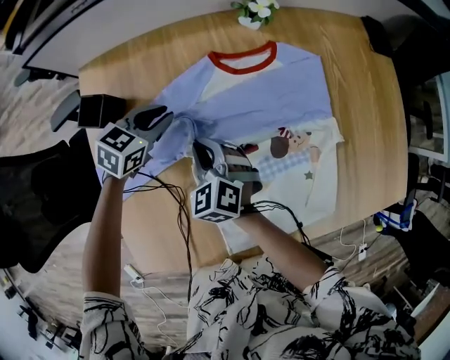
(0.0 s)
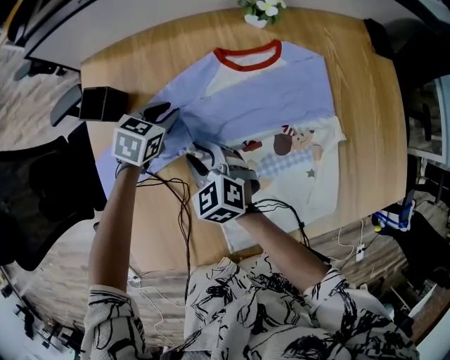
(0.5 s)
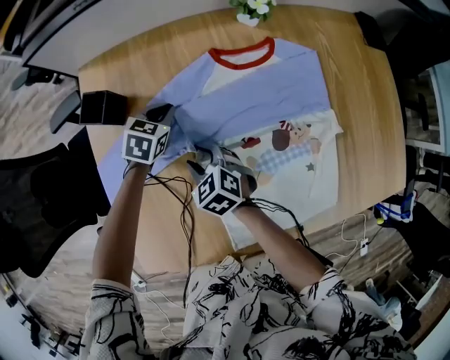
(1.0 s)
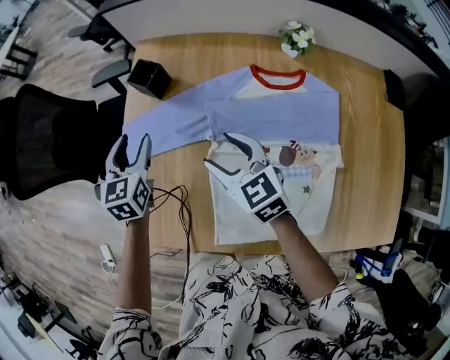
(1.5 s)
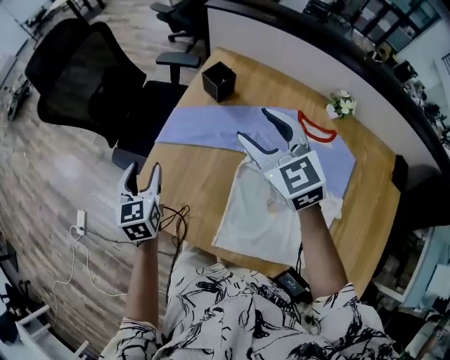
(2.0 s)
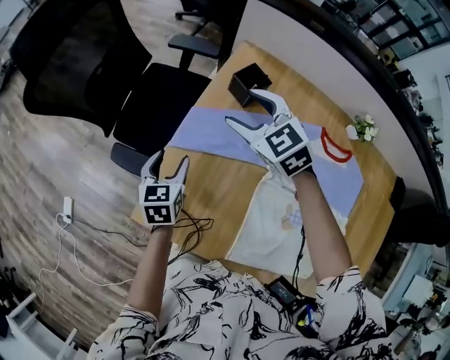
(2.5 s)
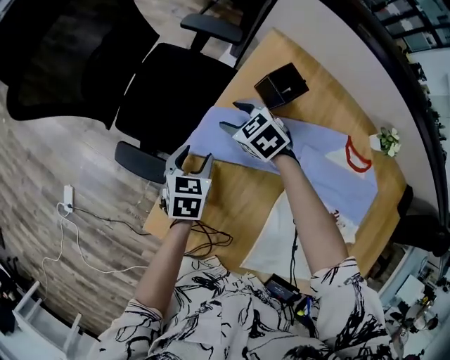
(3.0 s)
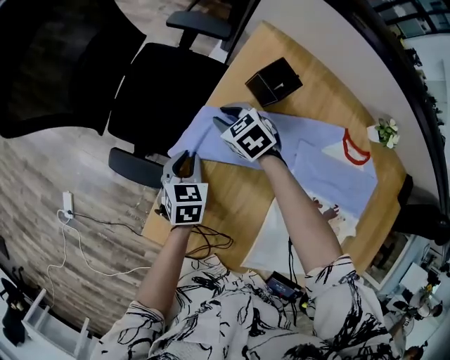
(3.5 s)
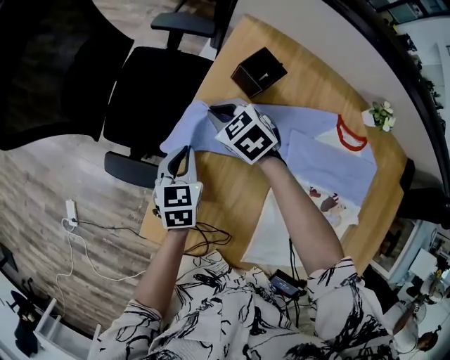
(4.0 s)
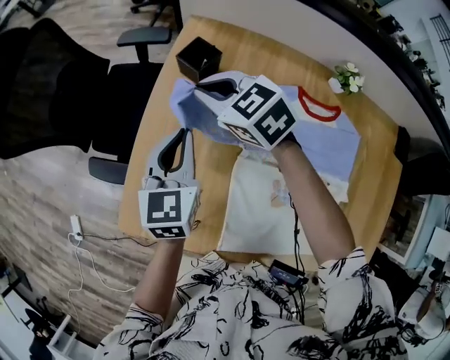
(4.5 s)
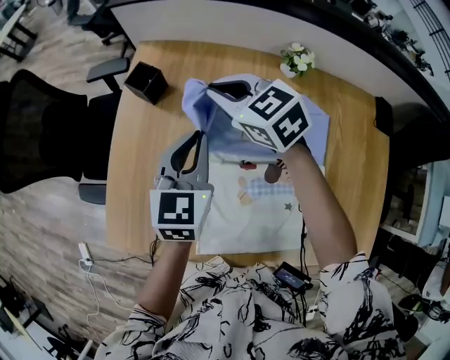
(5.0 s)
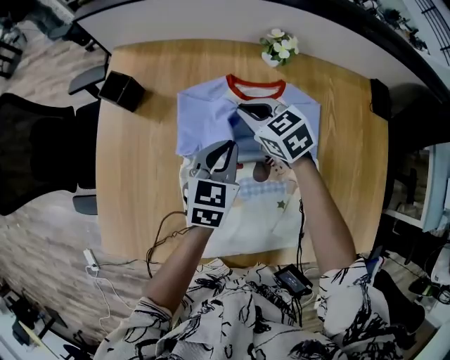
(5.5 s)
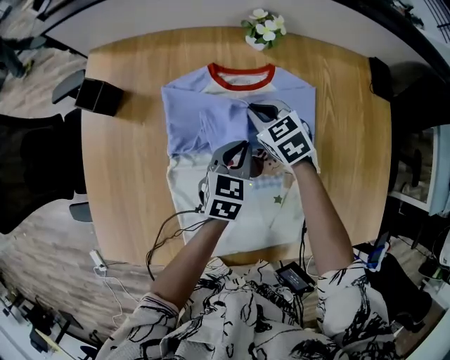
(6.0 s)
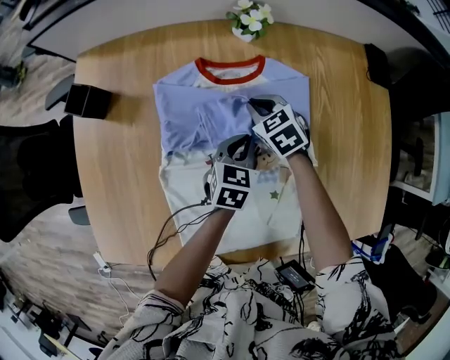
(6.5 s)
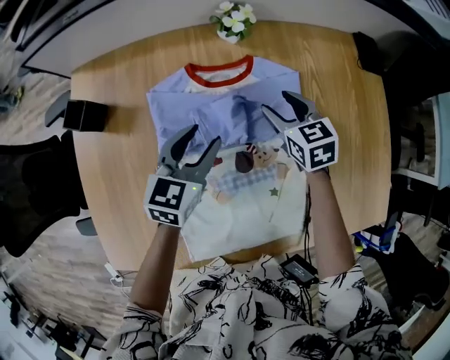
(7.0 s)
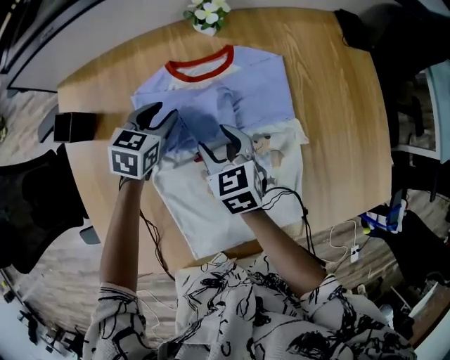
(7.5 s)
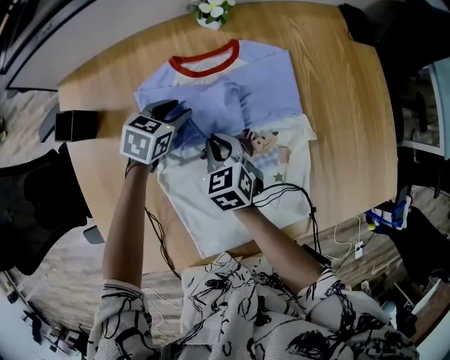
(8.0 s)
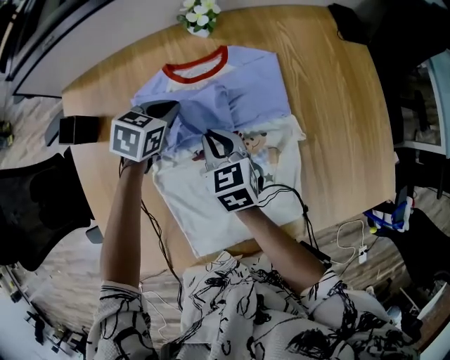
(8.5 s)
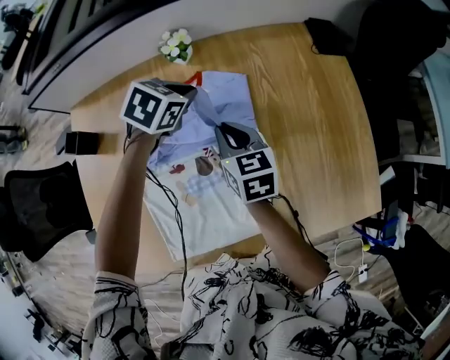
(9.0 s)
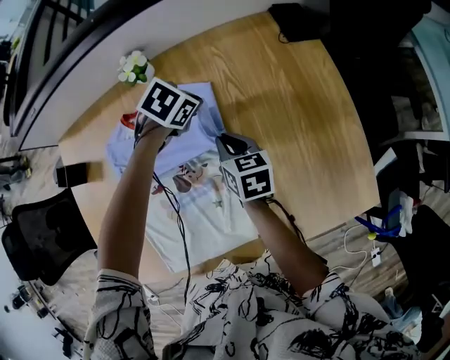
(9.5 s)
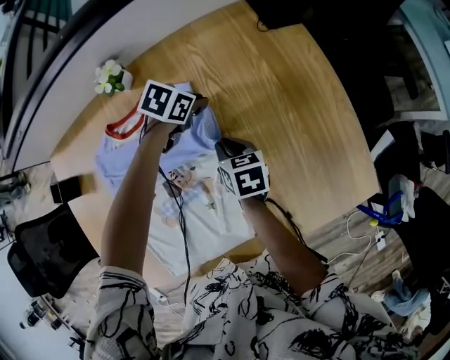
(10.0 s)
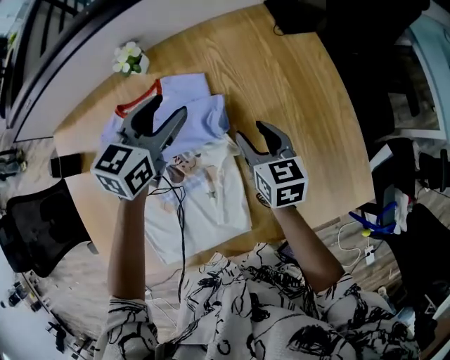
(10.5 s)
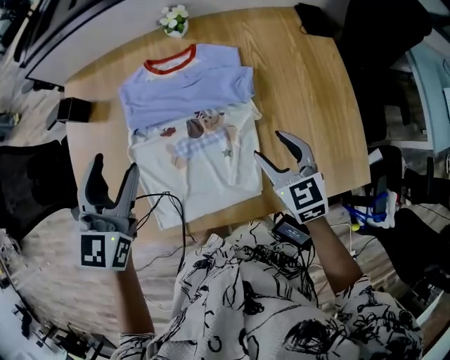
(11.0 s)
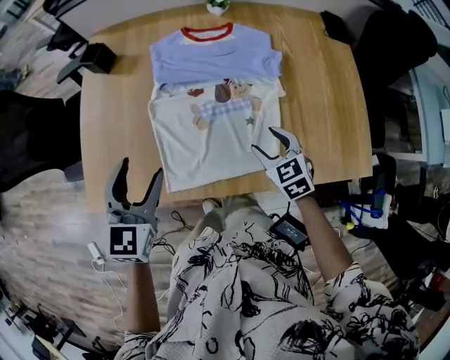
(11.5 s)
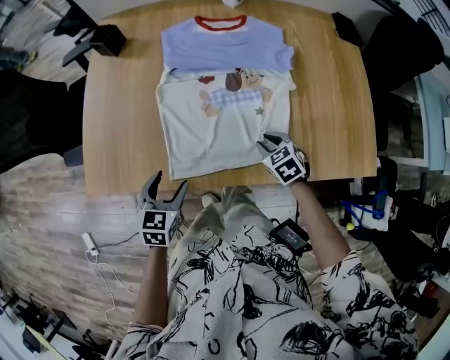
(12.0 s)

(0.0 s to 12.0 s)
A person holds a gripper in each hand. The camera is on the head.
0.0 s - 2.0 s: The right gripper travels upward by approximately 25 cm, swivels approximately 40 degrees, and opens up. Meanwhile the left gripper shifts by some 40 cm, and changes its angle by roughly 80 degrees.
2.0 s - 4.0 s: The left gripper goes roughly 20 cm downward and forward, and closes its fingers, while the right gripper heads downward, forward and to the left, covering approximately 35 cm, tips its fingers downward by about 30 degrees, and closes up.
4.0 s - 6.0 s: The two grippers travel together, about 50 cm. The left gripper rotates some 40 degrees; the right gripper turns by about 30 degrees.
6.0 s - 8.0 s: The left gripper shifts by approximately 15 cm, and swivels about 30 degrees; the right gripper shifts by some 10 cm, changes its angle by approximately 20 degrees, and opens, then closes once more.
8.0 s - 10.0 s: Both grippers move to the right and forward, about 30 cm. The right gripper changes its angle by about 40 degrees, while the left gripper turns by roughly 20 degrees.
10.0 s - 12.0 s: The right gripper goes upward and returns, about 15 cm each way, and rotates around the line of its fingers by approximately 50 degrees, counterclockwise from behind. The left gripper moves about 30 cm upward and comes back, turns by approximately 50 degrees, and opens up.

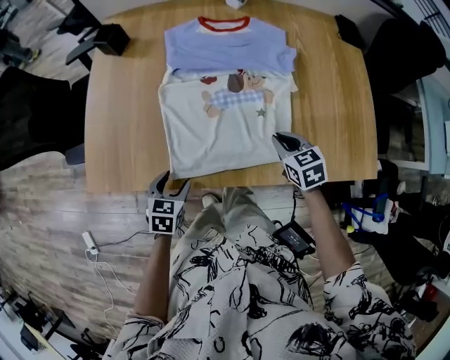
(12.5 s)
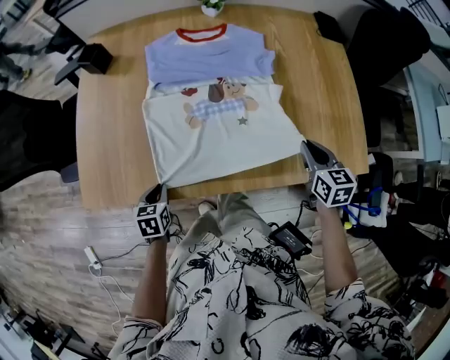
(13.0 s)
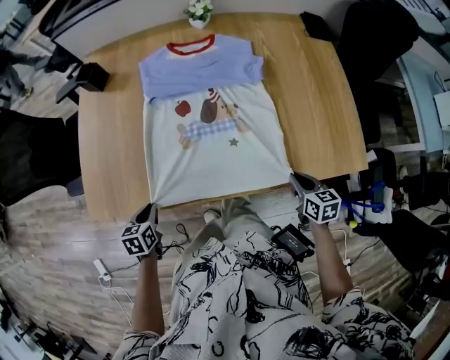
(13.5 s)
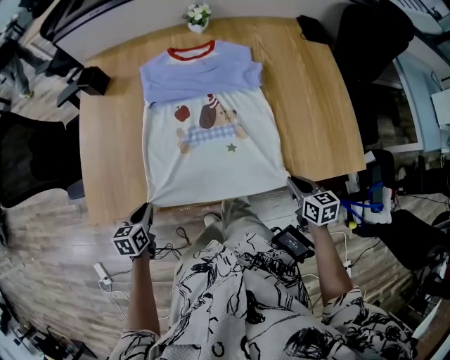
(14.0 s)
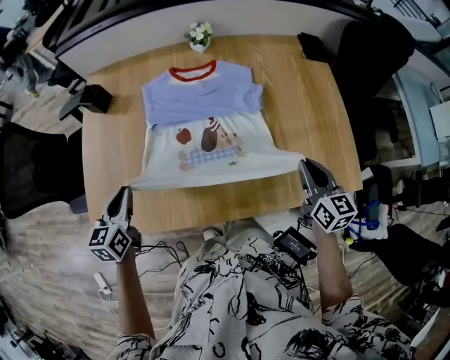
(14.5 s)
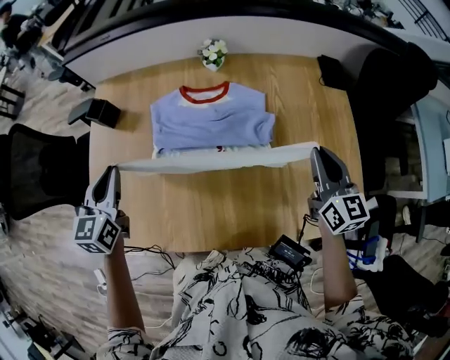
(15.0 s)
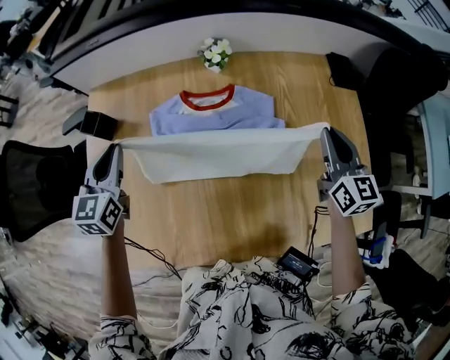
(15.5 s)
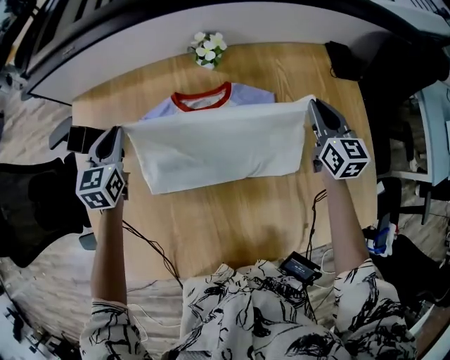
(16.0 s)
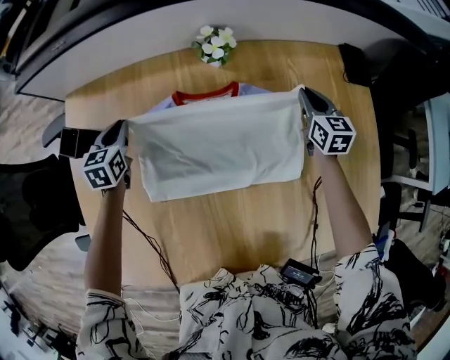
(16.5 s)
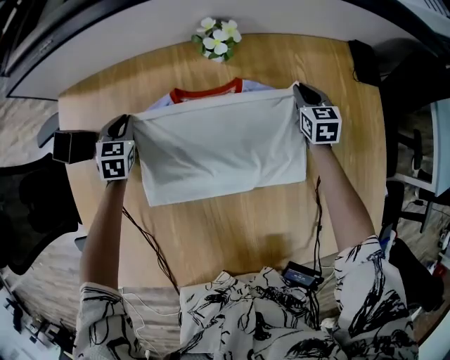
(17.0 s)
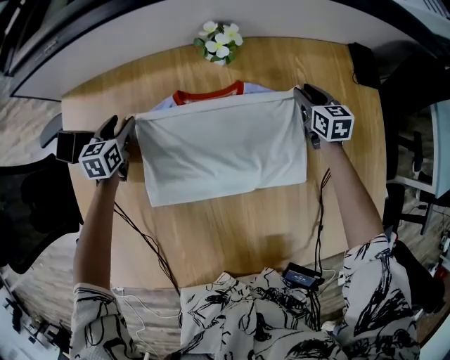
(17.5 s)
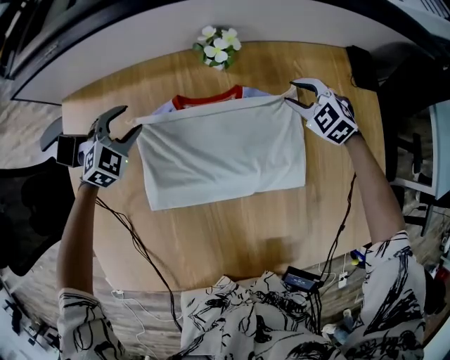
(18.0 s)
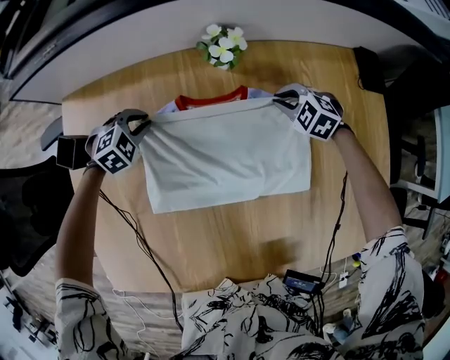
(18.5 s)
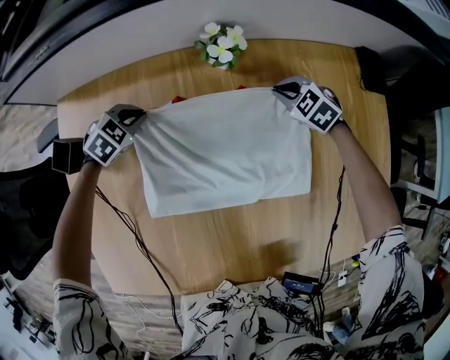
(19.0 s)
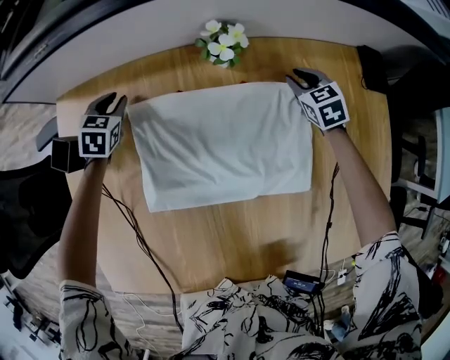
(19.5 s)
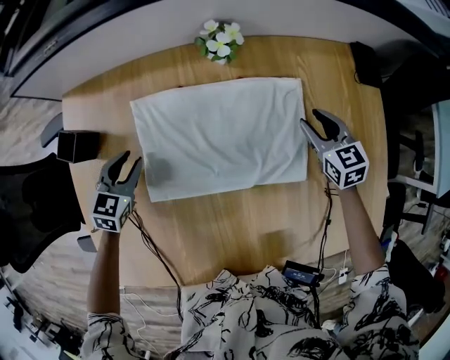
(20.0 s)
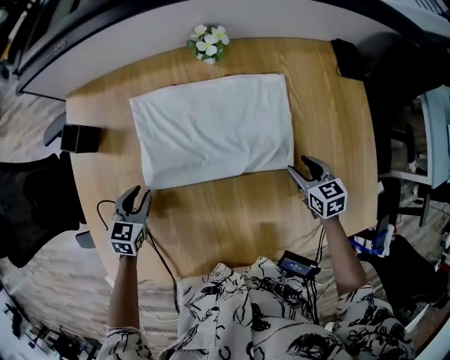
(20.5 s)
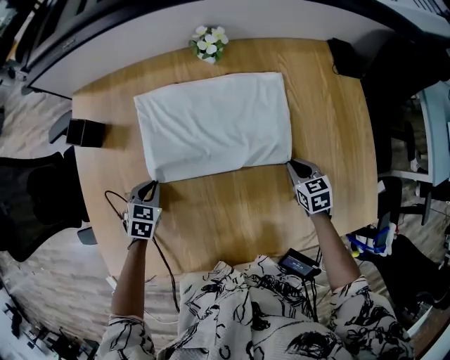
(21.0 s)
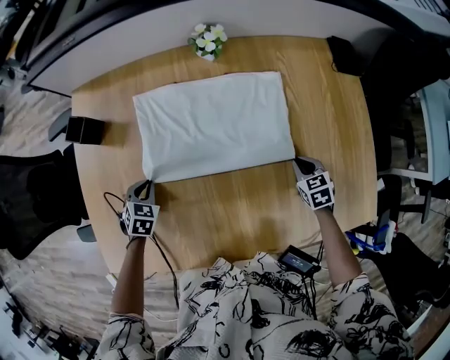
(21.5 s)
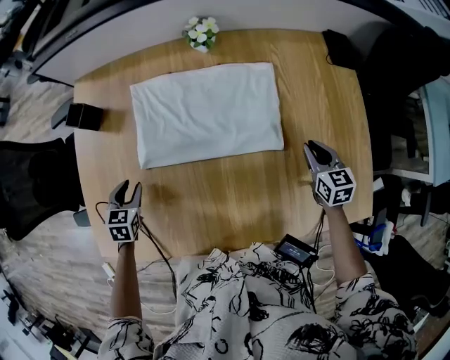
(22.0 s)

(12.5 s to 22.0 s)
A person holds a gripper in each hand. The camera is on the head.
12.5 s - 14.5 s: The left gripper goes roughly 20 cm upward and forward, rotates roughly 30 degrees, and closes up, while the right gripper moves up and down over approximately 15 cm, changing direction 2 times, and rotates some 40 degrees.
14.5 s - 16.5 s: The two grippers travel together, forward, some 40 cm.
16.5 s - 18.0 s: The right gripper shifts approximately 5 cm to the left, rolls counterclockwise, seen from behind, by approximately 50 degrees, and opens its fingers. Meanwhile the left gripper shifts by approximately 5 cm, rolls clockwise, seen from behind, by roughly 60 degrees, and opens.
18.0 s - 20.0 s: Both grippers move backward, roughly 10 cm. The left gripper turns by roughly 40 degrees; the right gripper turns by some 40 degrees, and closes and opens again.
20.0 s - 22.0 s: The left gripper shifts about 20 cm backward, and turns by roughly 20 degrees. The right gripper is displaced backward and to the right by approximately 20 cm.

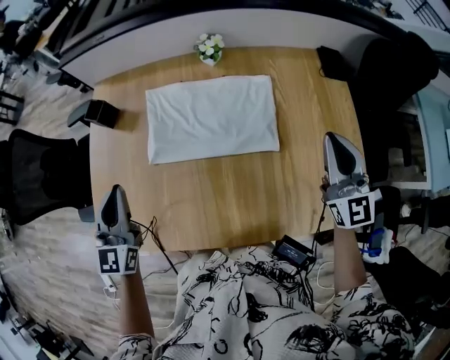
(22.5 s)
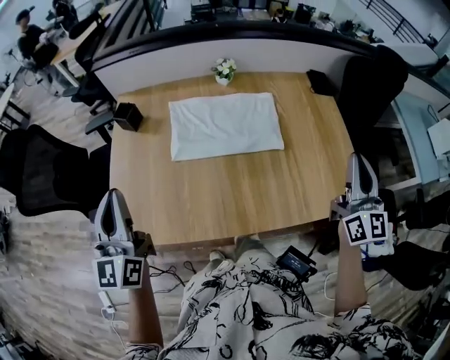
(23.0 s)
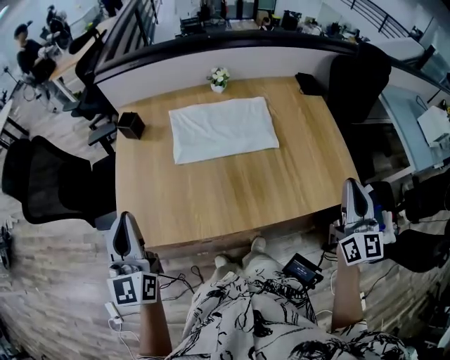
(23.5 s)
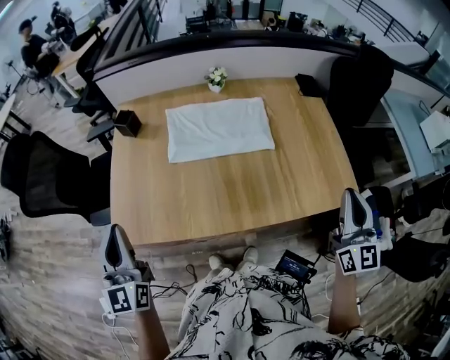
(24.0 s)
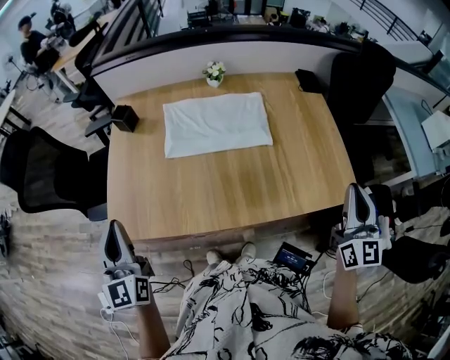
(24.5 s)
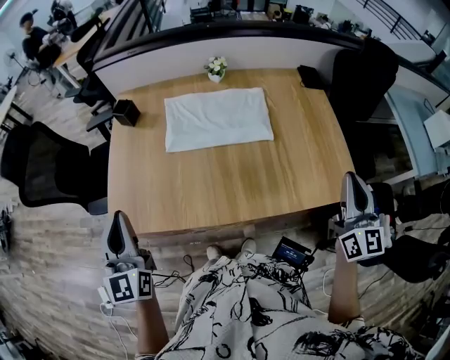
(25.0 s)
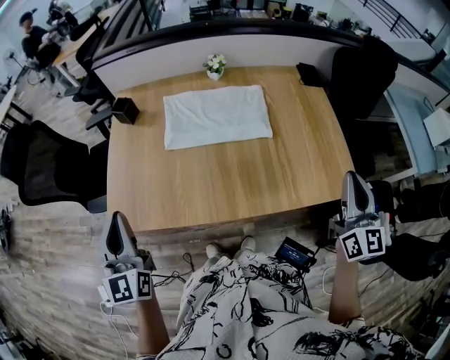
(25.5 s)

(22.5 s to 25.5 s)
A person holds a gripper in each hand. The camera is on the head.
22.5 s - 24.0 s: The right gripper goes approximately 30 cm backward. Meanwhile the left gripper travels backward and upward by some 25 cm.
24.0 s - 25.5 s: The grippers stay close to where they were, moving slightly.

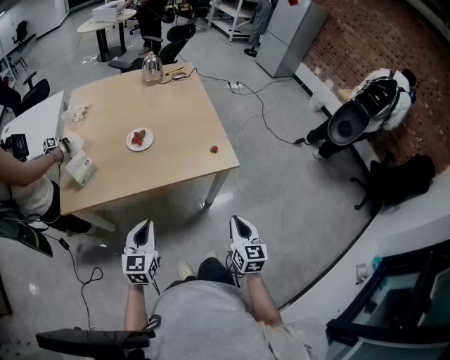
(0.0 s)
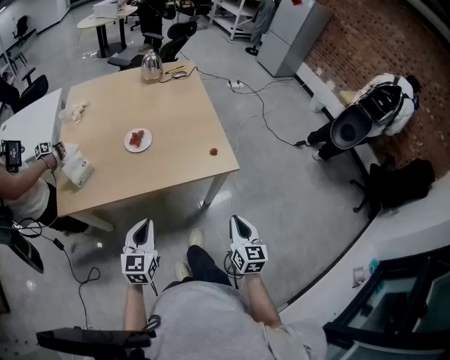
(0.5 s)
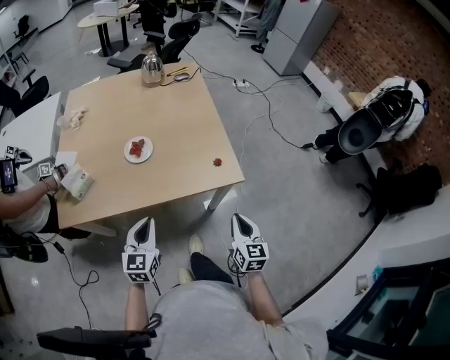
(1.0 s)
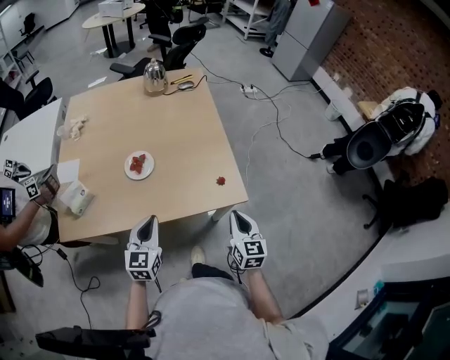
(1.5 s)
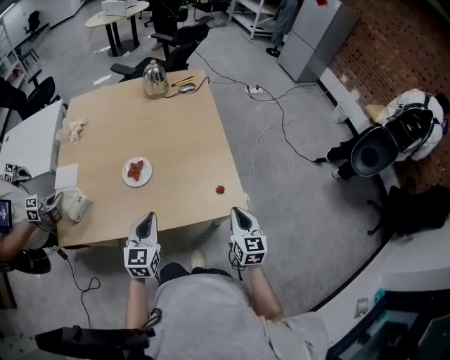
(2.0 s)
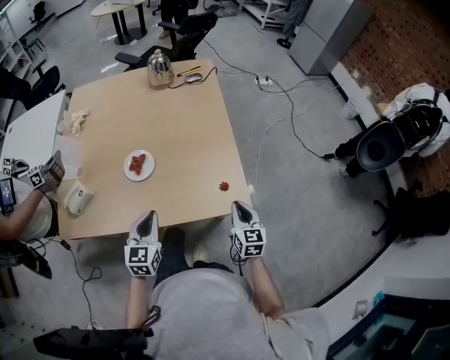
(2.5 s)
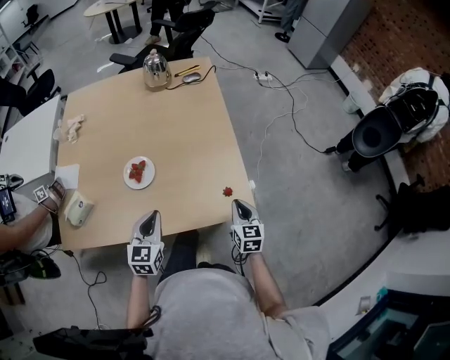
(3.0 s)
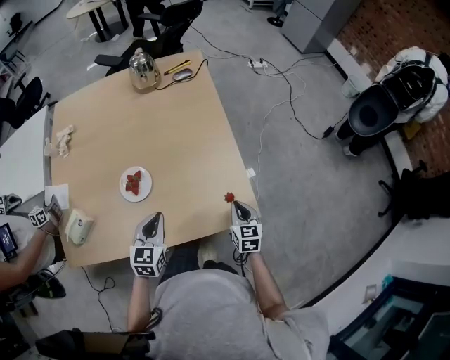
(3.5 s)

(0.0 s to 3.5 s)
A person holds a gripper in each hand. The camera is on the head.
0.0 s - 2.0 s: Both grippers travel together forward, some 25 cm.
2.0 s - 3.5 s: The right gripper goes about 15 cm downward and forward. The left gripper is displaced forward and downward by approximately 10 cm.
